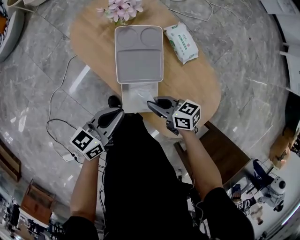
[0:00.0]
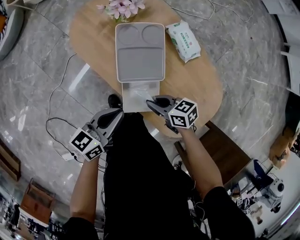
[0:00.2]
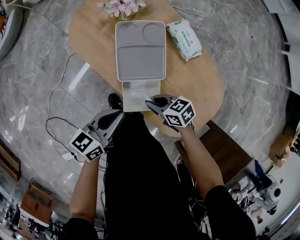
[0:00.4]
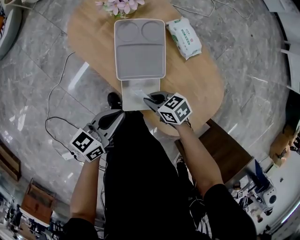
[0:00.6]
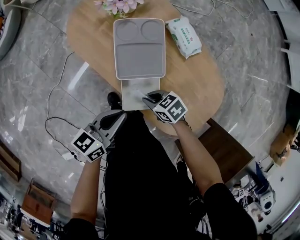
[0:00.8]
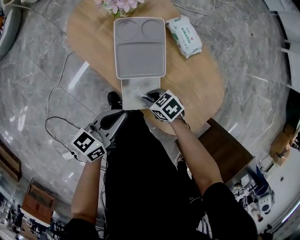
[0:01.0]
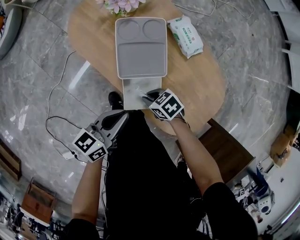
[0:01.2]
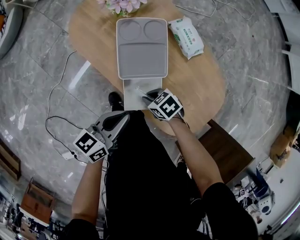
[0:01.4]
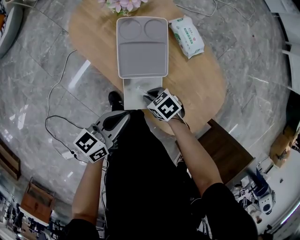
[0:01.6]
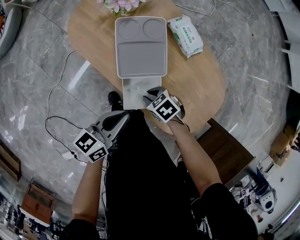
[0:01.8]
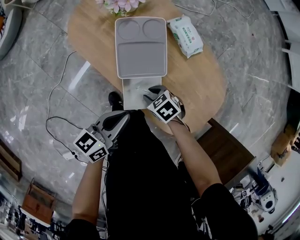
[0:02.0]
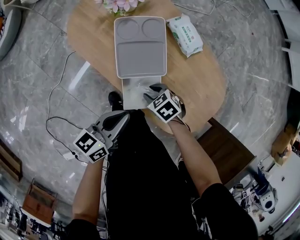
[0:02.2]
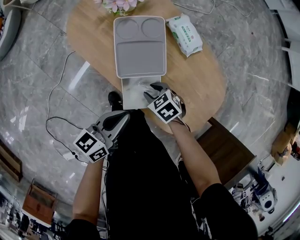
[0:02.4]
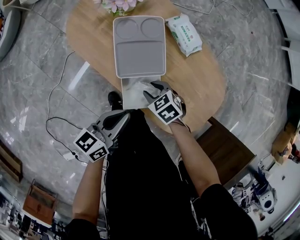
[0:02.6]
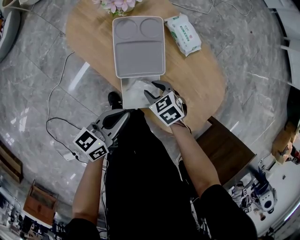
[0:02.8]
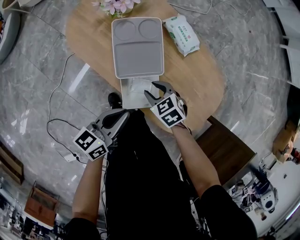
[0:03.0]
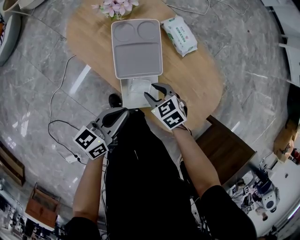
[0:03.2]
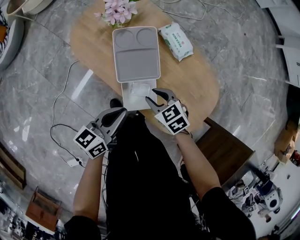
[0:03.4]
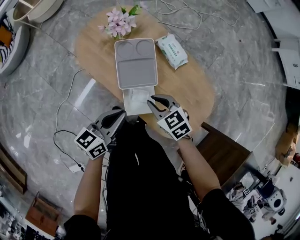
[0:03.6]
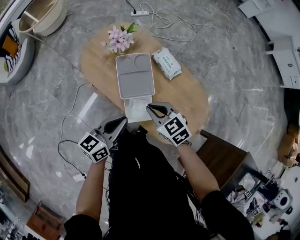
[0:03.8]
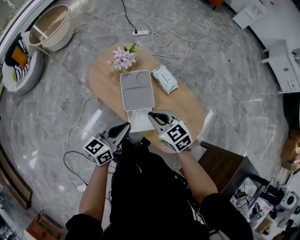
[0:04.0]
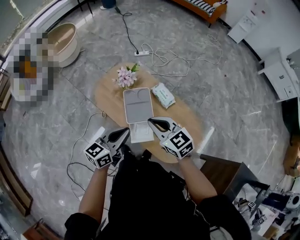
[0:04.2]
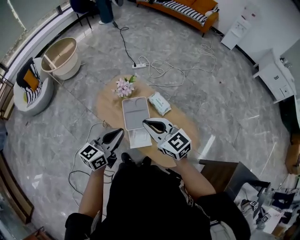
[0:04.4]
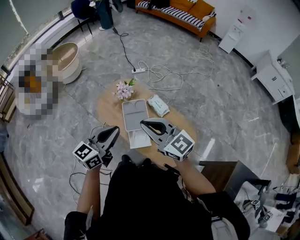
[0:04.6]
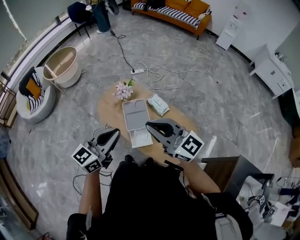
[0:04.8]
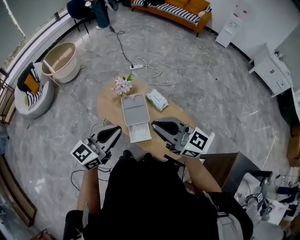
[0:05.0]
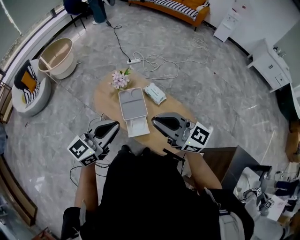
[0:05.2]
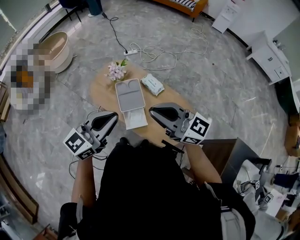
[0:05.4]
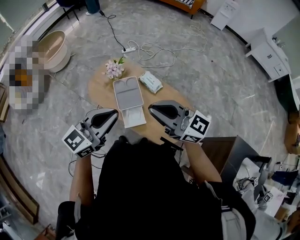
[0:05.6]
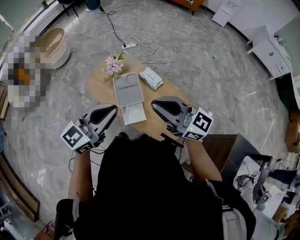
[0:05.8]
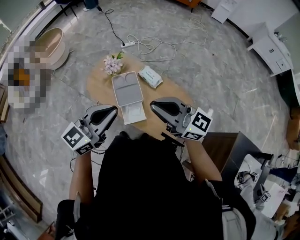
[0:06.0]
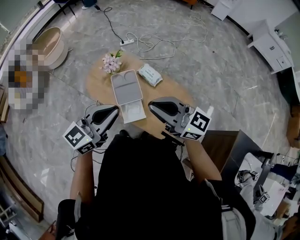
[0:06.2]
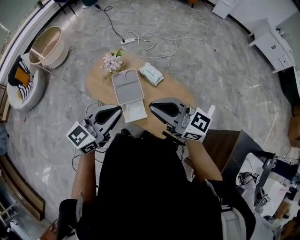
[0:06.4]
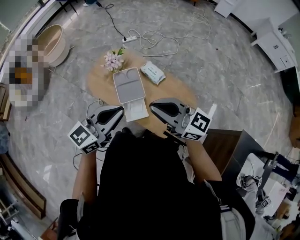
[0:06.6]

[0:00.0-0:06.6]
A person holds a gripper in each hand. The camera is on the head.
0:00.0 to 0:01.6: The right gripper is displaced downward by some 10 cm, and angles its fingers downward, by some 30 degrees.
0:01.6 to 0:03.2: The right gripper moves upward, about 5 cm, swivels approximately 20 degrees, and opens.
0:03.2 to 0:05.0: Both grippers travel together upward, approximately 50 cm. The left gripper rotates some 40 degrees. The right gripper angles its fingers upward, by about 70 degrees, and closes its fingers.
0:05.0 to 0:06.6: The right gripper is displaced downward by roughly 5 cm. Meanwhile the left gripper shifts some 5 cm downward and to the right.

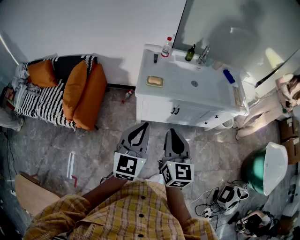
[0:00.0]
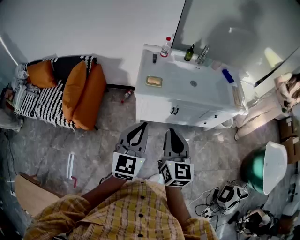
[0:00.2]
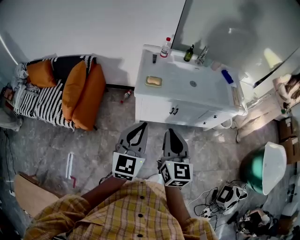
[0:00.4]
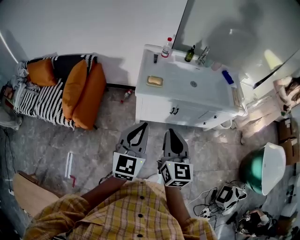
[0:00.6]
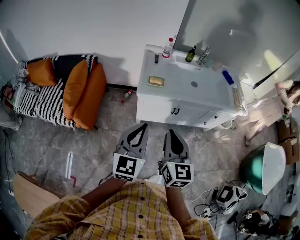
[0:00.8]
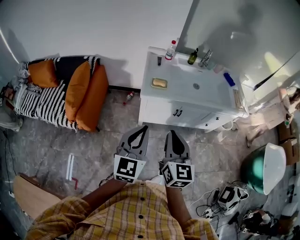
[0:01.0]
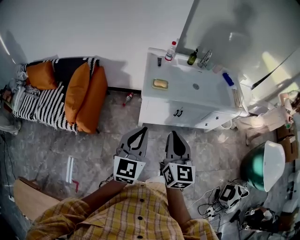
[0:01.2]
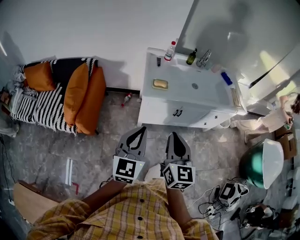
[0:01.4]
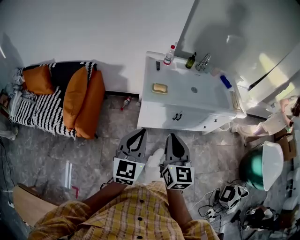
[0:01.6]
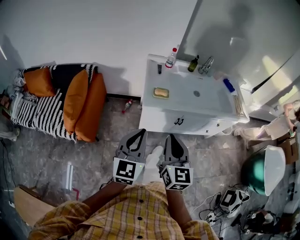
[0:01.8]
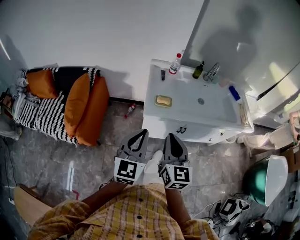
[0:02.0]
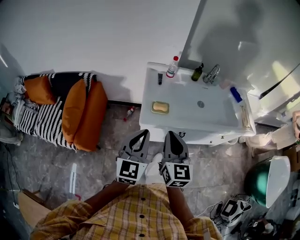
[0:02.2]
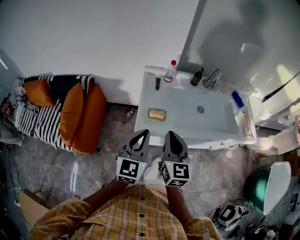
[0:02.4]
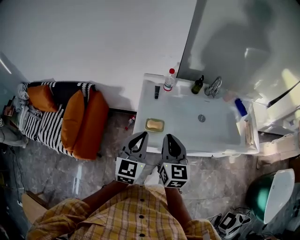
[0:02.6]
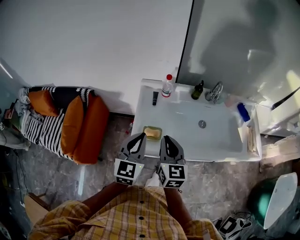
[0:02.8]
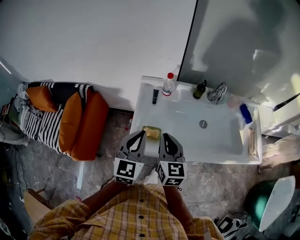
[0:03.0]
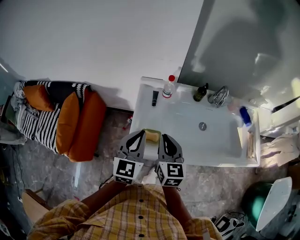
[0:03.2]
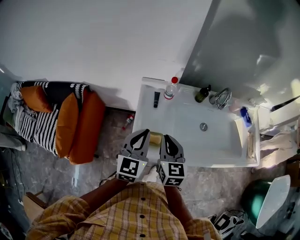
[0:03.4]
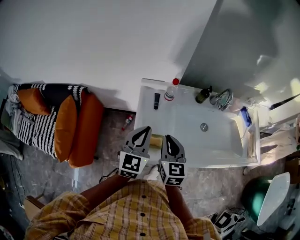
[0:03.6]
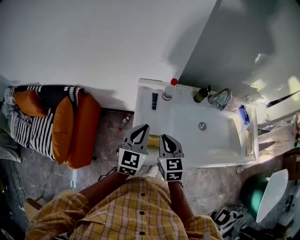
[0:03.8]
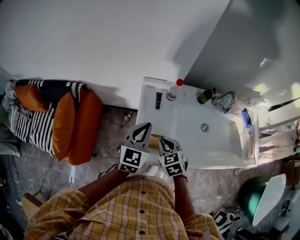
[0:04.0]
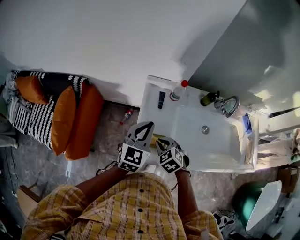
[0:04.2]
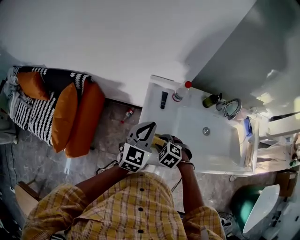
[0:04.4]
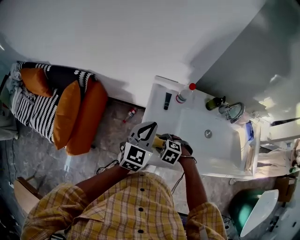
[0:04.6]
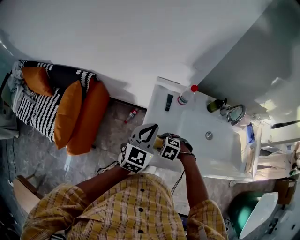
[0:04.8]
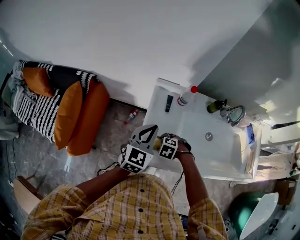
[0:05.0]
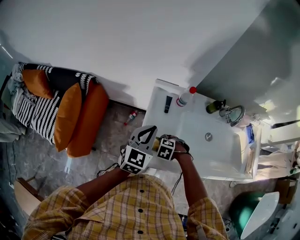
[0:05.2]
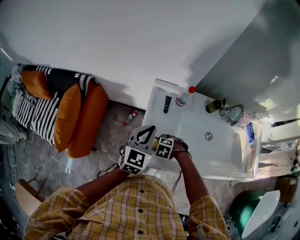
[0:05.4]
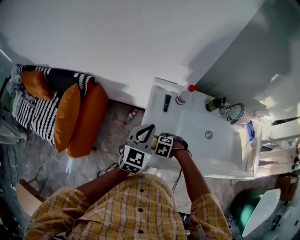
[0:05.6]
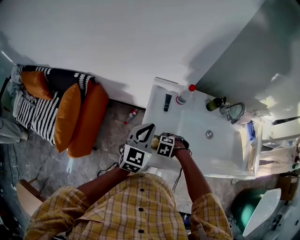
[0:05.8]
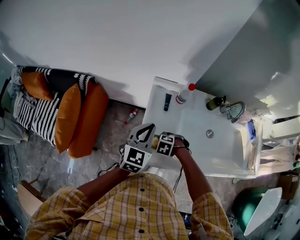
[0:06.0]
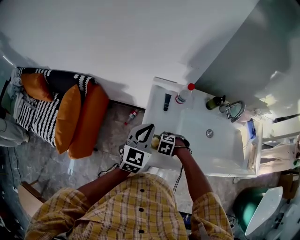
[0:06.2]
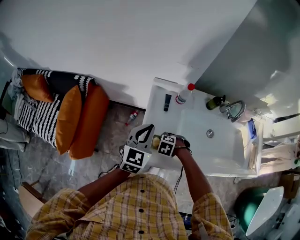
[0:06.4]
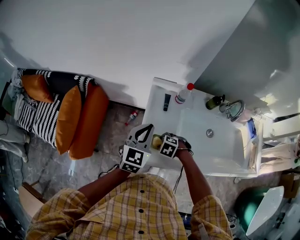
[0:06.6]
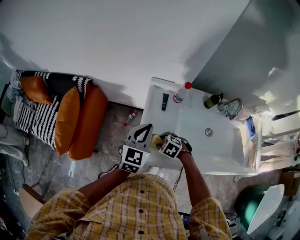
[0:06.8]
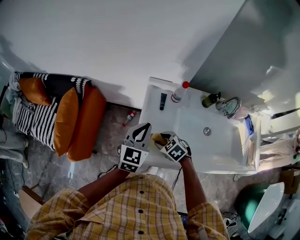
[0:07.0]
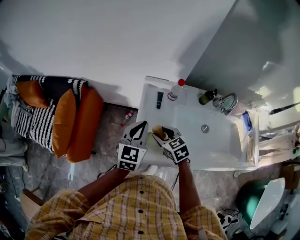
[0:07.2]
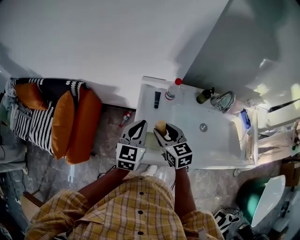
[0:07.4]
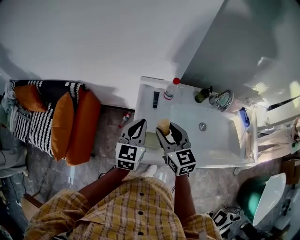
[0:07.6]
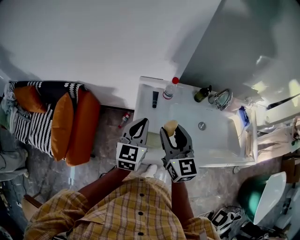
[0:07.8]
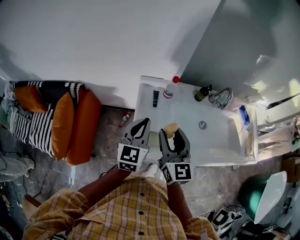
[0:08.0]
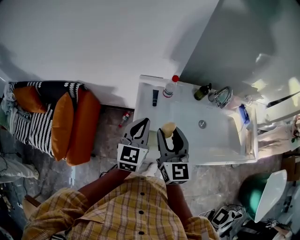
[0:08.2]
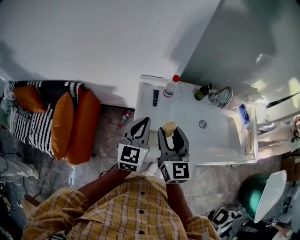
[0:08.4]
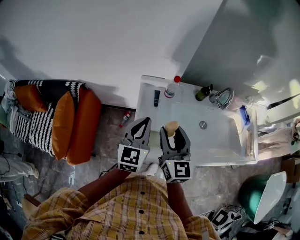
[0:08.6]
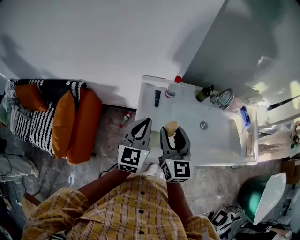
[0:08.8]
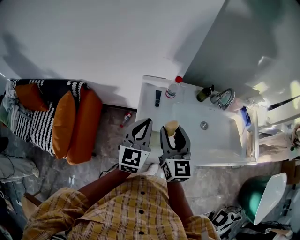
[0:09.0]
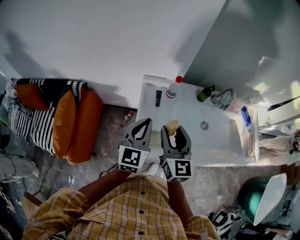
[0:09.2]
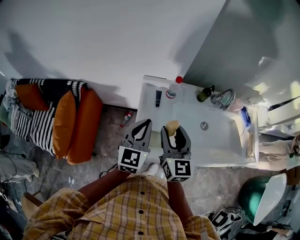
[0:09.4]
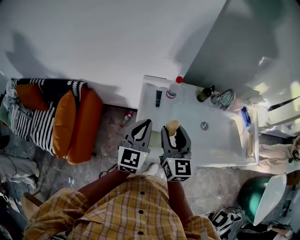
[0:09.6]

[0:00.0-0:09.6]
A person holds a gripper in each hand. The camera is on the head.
0:00.0 to 0:01.6: Both grippers travel together to the left, approximately 10 cm.
0:01.6 to 0:03.2: The two grippers travel together, forward, some 40 cm.
0:03.2 to 0:04.8: The left gripper moves about 10 cm. Meanwhile the right gripper travels downward by some 25 cm, angles its fingers downward, by some 60 degrees, and opens up.
0:04.8 to 0:06.4: The grippers stay close to where they were, moving slightly.
0:06.4 to 0:08.0: The left gripper moves approximately 5 cm; the right gripper goes approximately 30 cm upward, and points its fingers some 70 degrees further upward.
0:08.0 to 0:09.6: The grippers stay close to where they were, moving slightly.

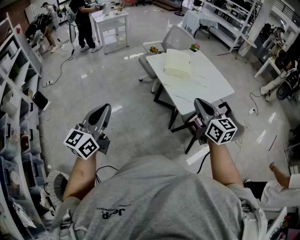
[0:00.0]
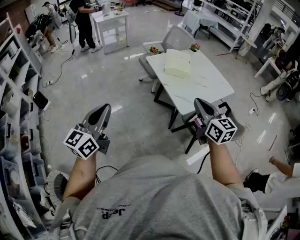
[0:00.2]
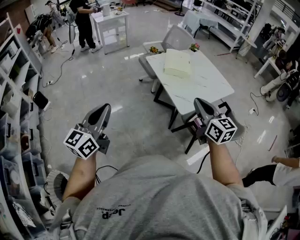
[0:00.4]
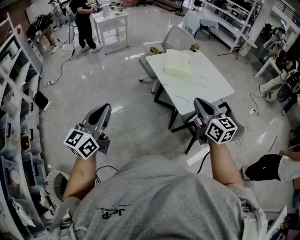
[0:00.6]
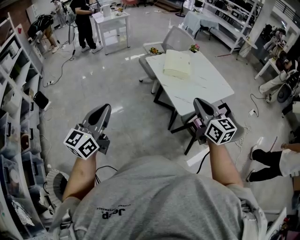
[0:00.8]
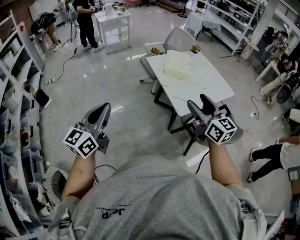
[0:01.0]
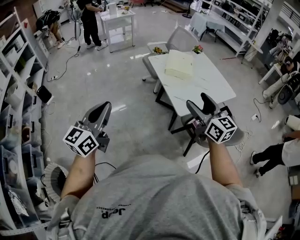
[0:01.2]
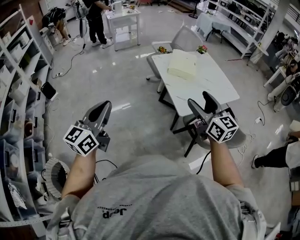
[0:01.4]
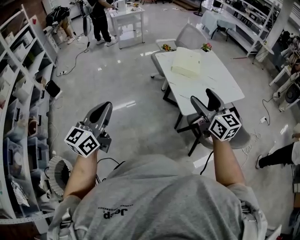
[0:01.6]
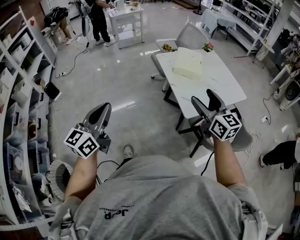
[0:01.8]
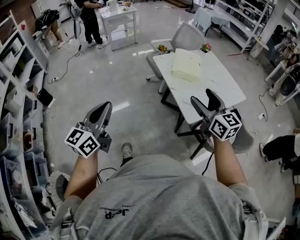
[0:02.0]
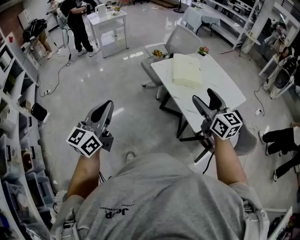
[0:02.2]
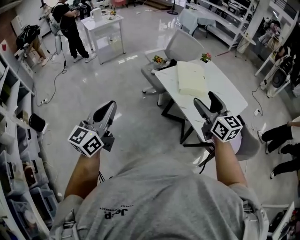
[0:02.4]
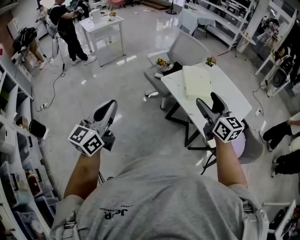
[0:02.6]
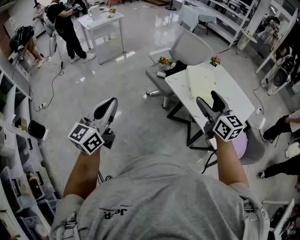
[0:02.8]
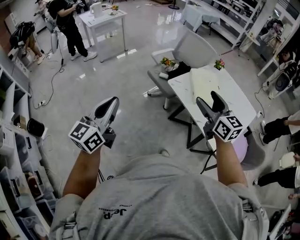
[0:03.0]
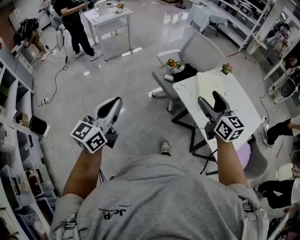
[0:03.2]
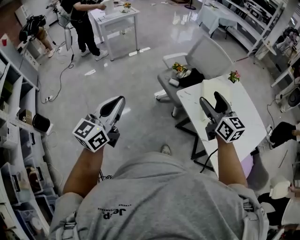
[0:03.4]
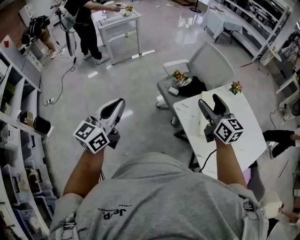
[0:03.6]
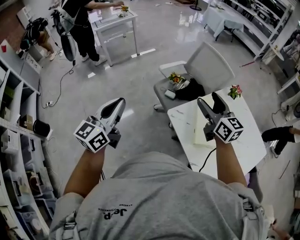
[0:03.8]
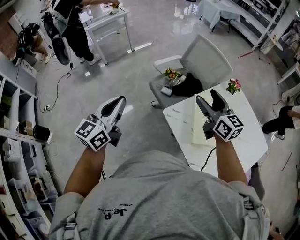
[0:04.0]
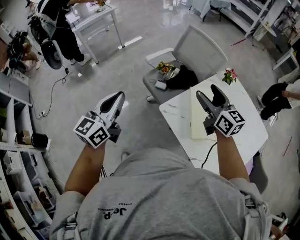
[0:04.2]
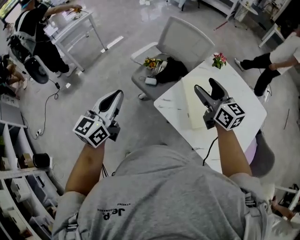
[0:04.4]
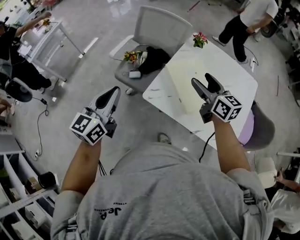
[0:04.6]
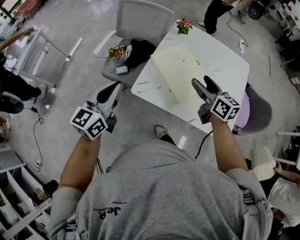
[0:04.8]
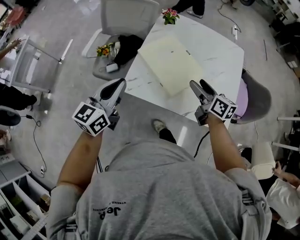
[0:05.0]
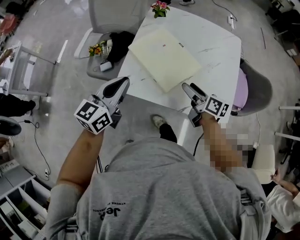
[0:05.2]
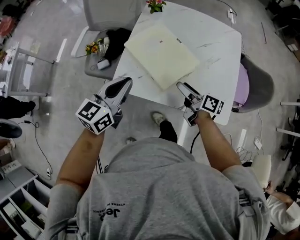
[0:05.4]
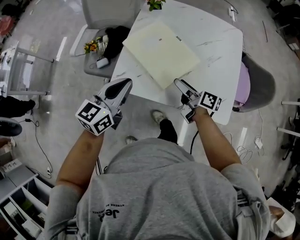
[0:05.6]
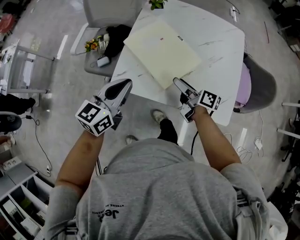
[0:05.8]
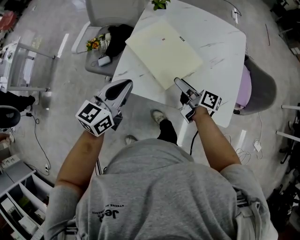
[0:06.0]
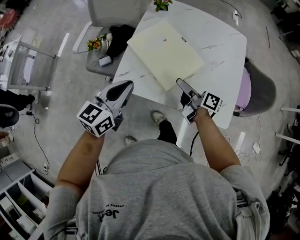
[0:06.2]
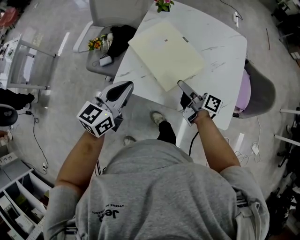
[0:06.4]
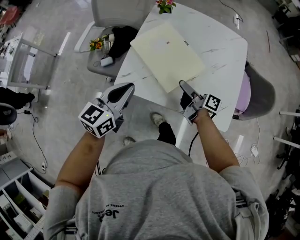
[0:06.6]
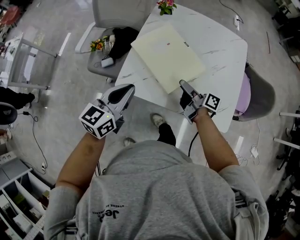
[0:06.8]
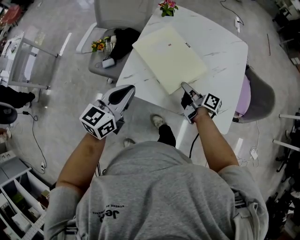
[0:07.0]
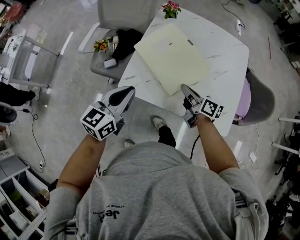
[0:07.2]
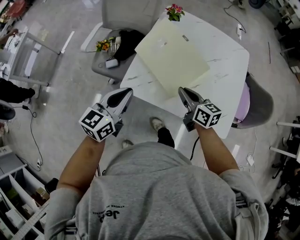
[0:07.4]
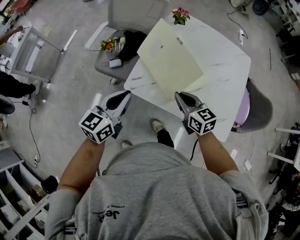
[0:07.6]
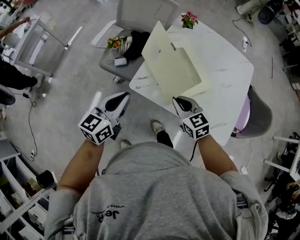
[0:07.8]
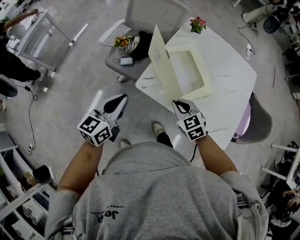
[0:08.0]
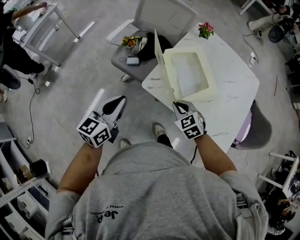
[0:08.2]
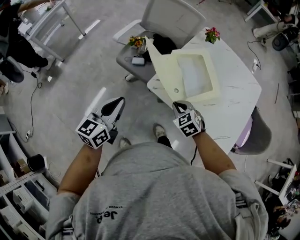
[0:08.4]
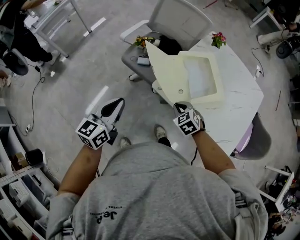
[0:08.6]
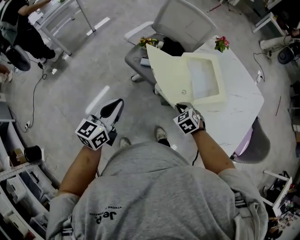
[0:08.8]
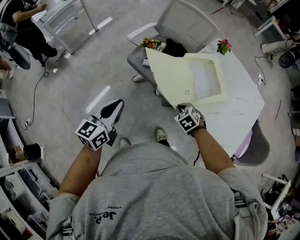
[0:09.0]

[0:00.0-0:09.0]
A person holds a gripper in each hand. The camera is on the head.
0:00.0 to 0:01.6: The right gripper moves roughly 5 cm, and opens its fingers, while the left gripper is displaced to the right by roughly 5 cm.
0:01.6 to 0:03.0: The two grippers travel together, forward and to the left, about 50 cm.
0:03.0 to 0:04.4: Both grippers move forward, roughly 35 cm.
0:04.4 to 0:06.0: The left gripper moves roughly 30 cm, and changes its angle by roughly 40 degrees. The right gripper heads downward, covering about 25 cm, and rotates around the line of its fingers by about 60 degrees, clockwise from behind.
0:06.0 to 0:07.6: The left gripper moves to the left, some 5 cm, while the right gripper goes some 10 cm to the left and upward, twists approximately 50 degrees counterclockwise, seen from behind, and closes.
0:07.6 to 0:09.0: The left gripper heads to the left and backward, covering approximately 20 cm, and rotates roughly 20 degrees. Meanwhile the right gripper shifts approximately 15 cm downward and to the left, and angles its fingers downward, by roughly 40 degrees.
